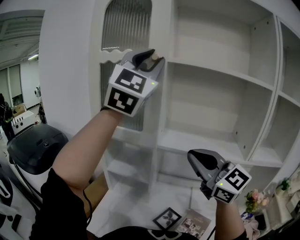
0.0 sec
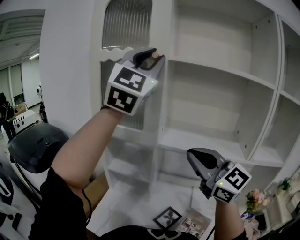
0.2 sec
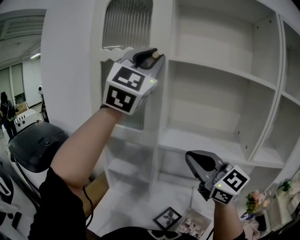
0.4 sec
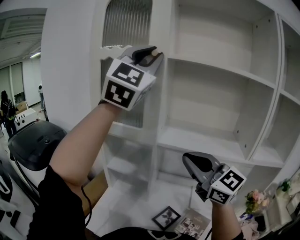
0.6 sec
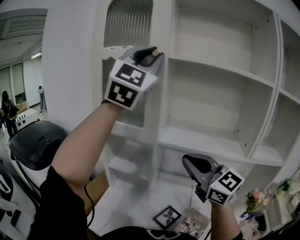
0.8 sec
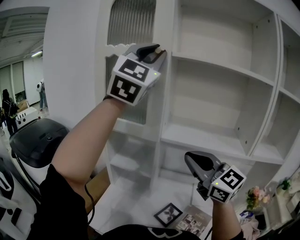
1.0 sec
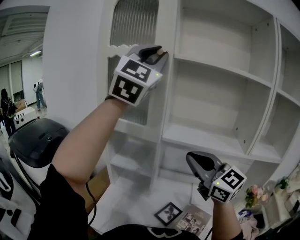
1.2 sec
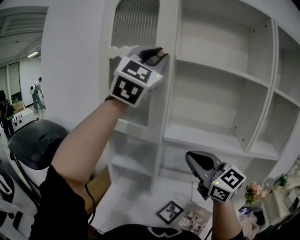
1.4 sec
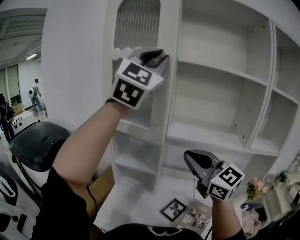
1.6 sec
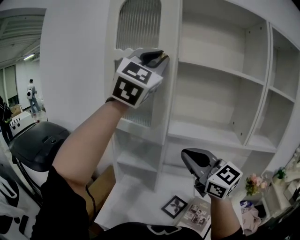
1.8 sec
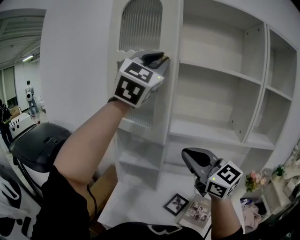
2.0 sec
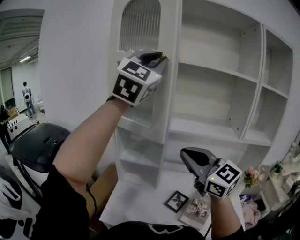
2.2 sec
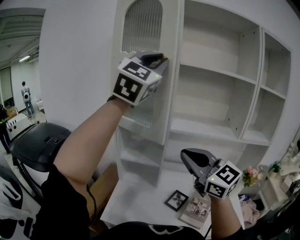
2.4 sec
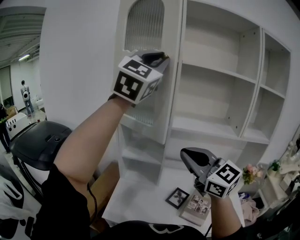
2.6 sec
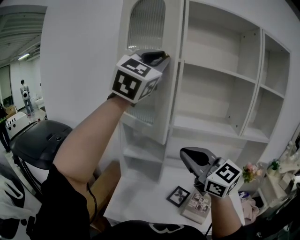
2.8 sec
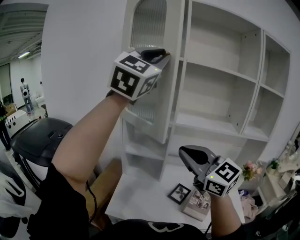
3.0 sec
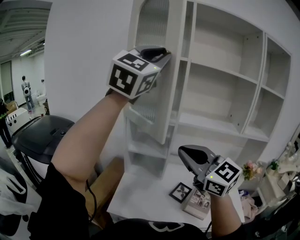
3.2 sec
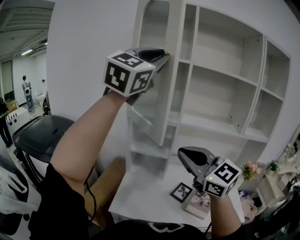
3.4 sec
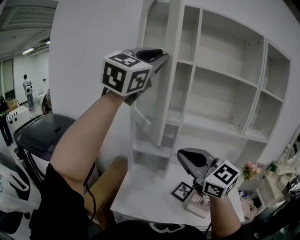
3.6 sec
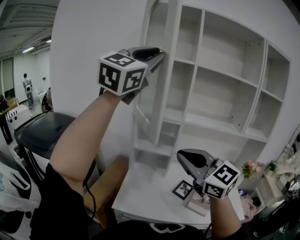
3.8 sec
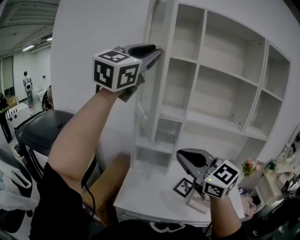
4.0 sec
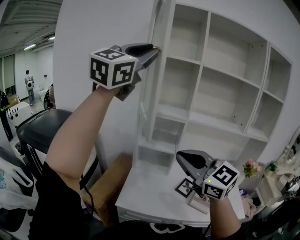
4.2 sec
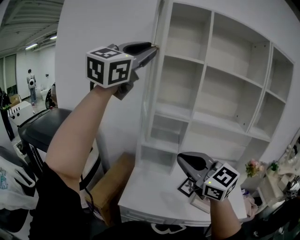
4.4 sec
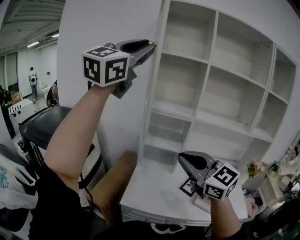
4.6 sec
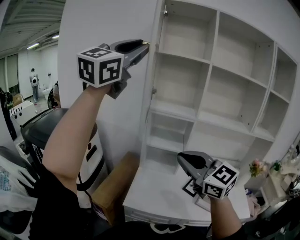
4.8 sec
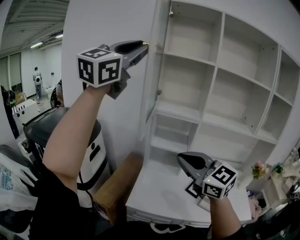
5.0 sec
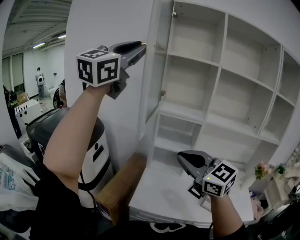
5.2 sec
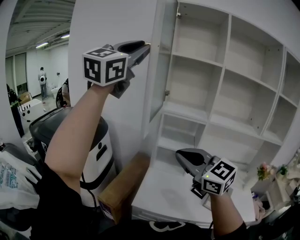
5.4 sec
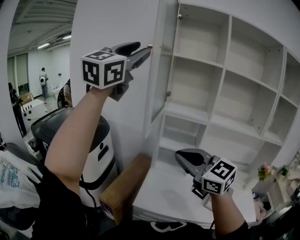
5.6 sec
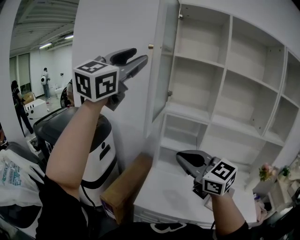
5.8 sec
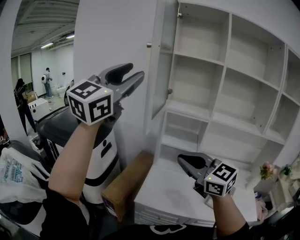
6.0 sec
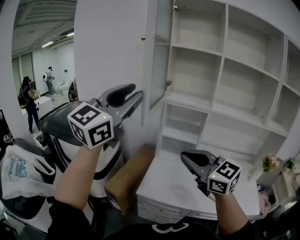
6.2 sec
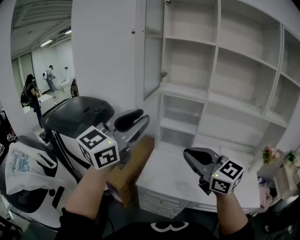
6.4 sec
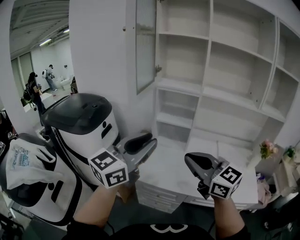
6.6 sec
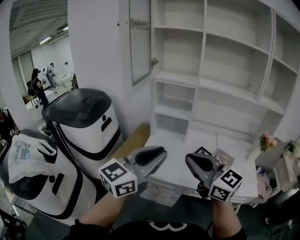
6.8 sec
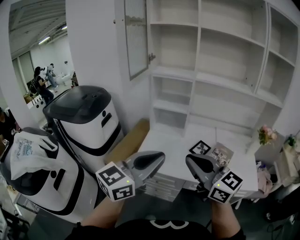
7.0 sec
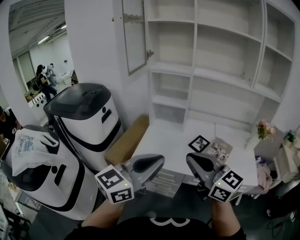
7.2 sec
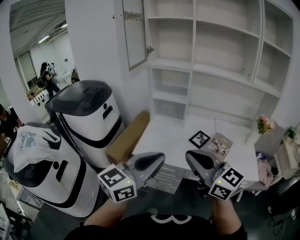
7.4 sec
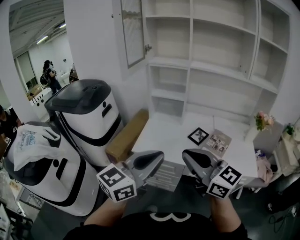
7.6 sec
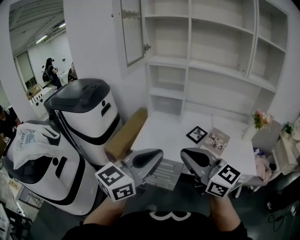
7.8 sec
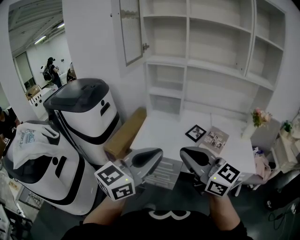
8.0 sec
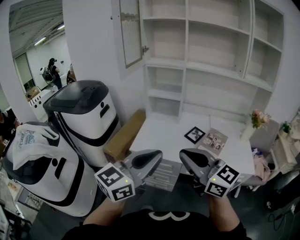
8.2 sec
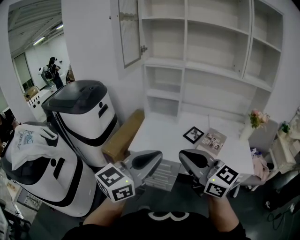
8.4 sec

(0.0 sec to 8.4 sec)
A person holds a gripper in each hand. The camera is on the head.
0.0 sec - 1.4 sec: The grippers make only small movements.
1.4 sec - 2.8 sec: The right gripper travels to the left and backward by some 15 cm; the left gripper shifts approximately 10 cm backward and to the left.
2.8 sec - 4.2 sec: The two grippers go approximately 15 cm to the left and backward.
4.2 sec - 5.6 sec: Both grippers travel together to the left, approximately 10 cm.
5.6 sec - 7.0 sec: The right gripper heads backward, to the right and downward, covering some 25 cm, and changes its angle by approximately 20 degrees. Meanwhile the left gripper is displaced downward, backward and to the right by approximately 50 cm, rotates some 40 degrees, and closes up.
7.0 sec - 8.4 sec: The grippers both shift backward by approximately 10 cm.

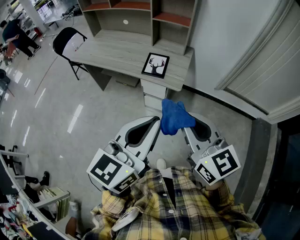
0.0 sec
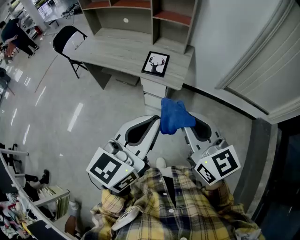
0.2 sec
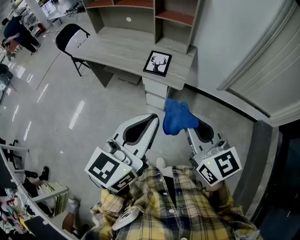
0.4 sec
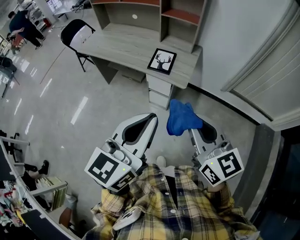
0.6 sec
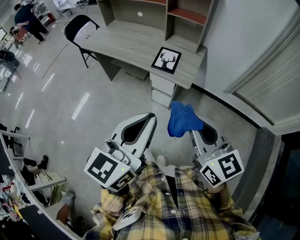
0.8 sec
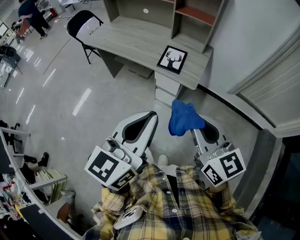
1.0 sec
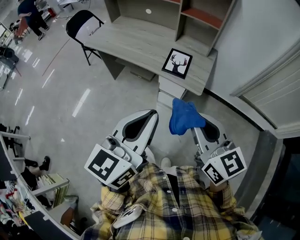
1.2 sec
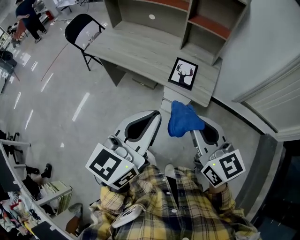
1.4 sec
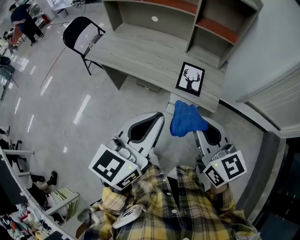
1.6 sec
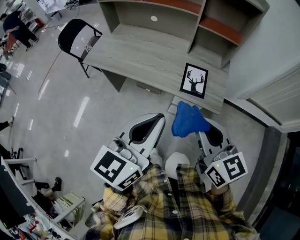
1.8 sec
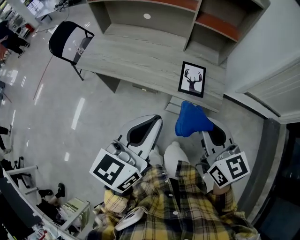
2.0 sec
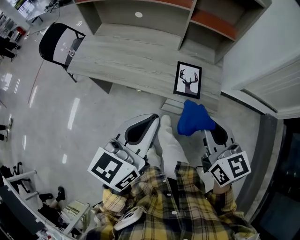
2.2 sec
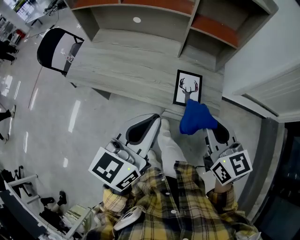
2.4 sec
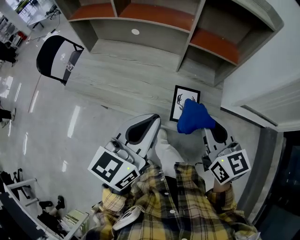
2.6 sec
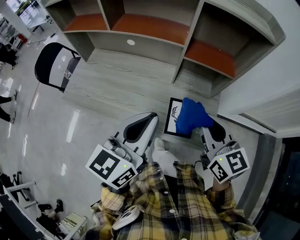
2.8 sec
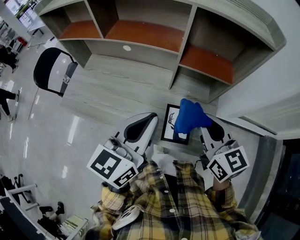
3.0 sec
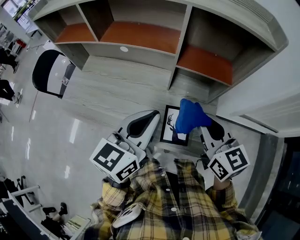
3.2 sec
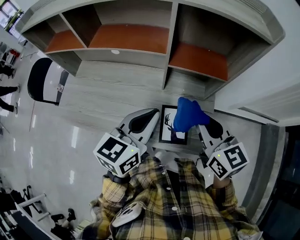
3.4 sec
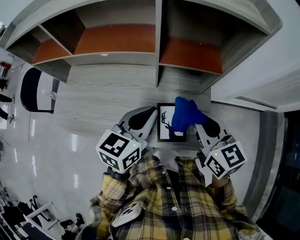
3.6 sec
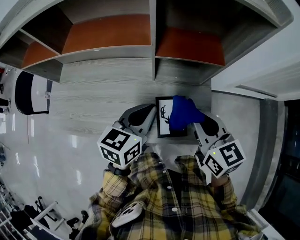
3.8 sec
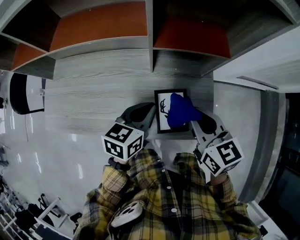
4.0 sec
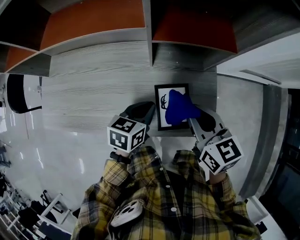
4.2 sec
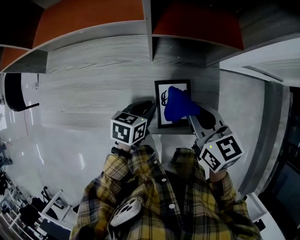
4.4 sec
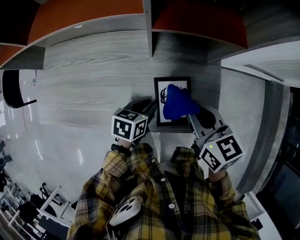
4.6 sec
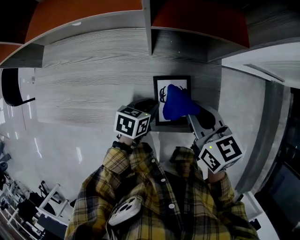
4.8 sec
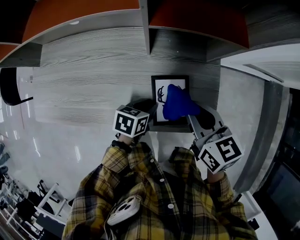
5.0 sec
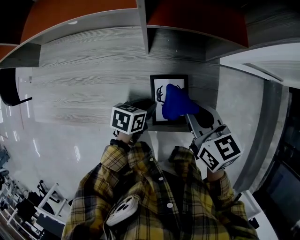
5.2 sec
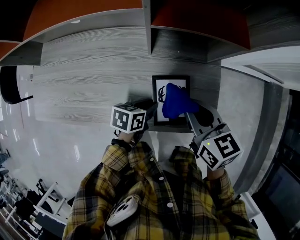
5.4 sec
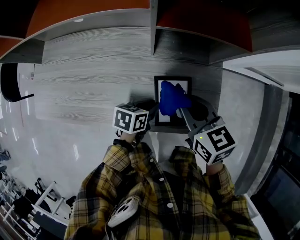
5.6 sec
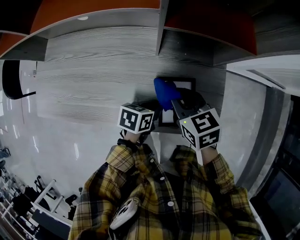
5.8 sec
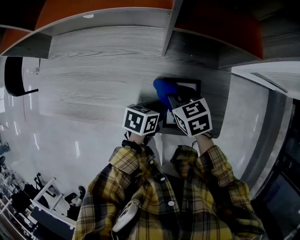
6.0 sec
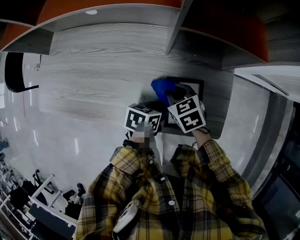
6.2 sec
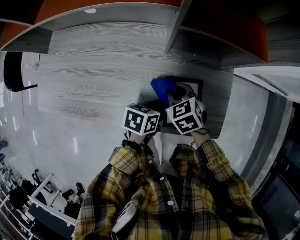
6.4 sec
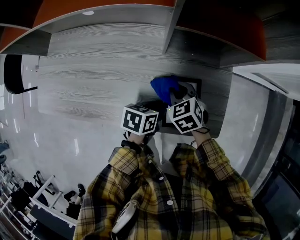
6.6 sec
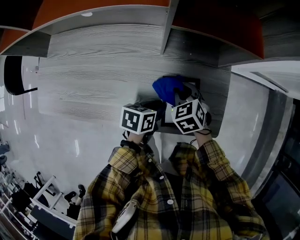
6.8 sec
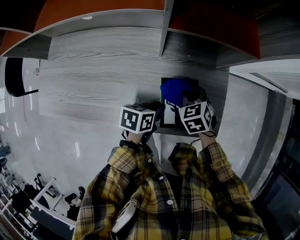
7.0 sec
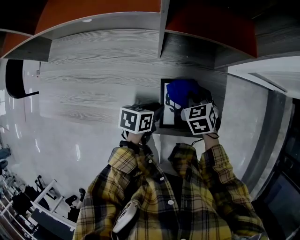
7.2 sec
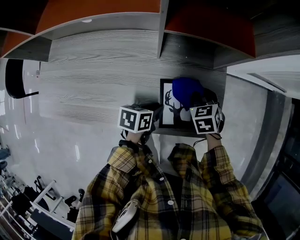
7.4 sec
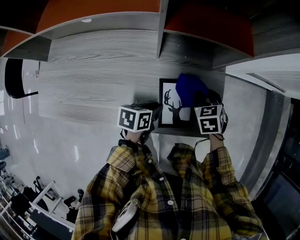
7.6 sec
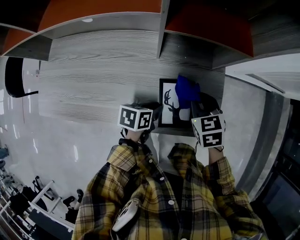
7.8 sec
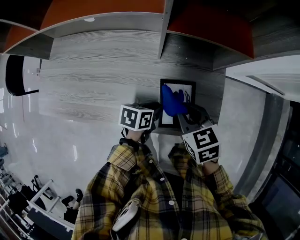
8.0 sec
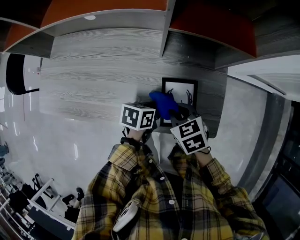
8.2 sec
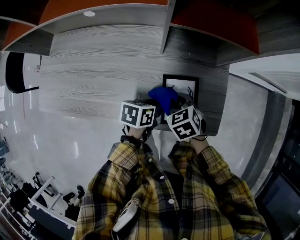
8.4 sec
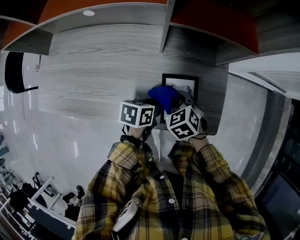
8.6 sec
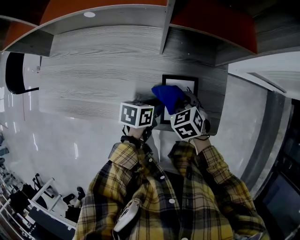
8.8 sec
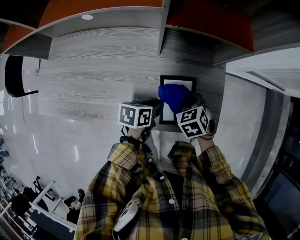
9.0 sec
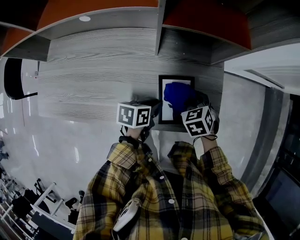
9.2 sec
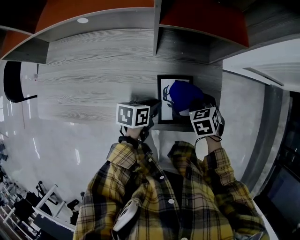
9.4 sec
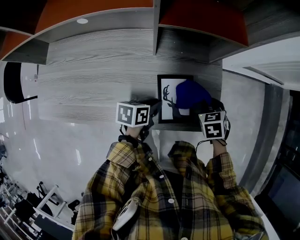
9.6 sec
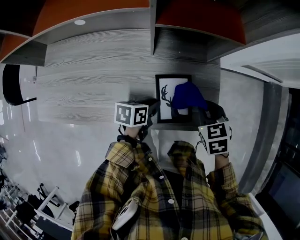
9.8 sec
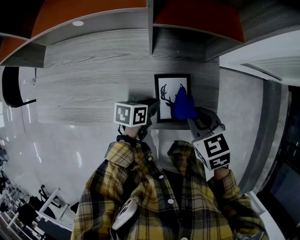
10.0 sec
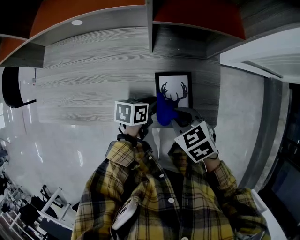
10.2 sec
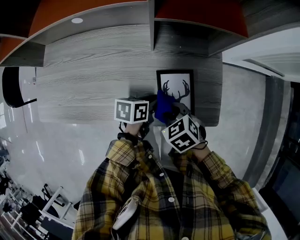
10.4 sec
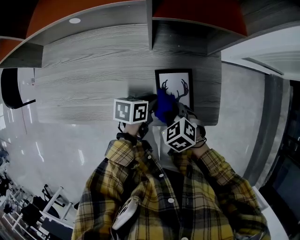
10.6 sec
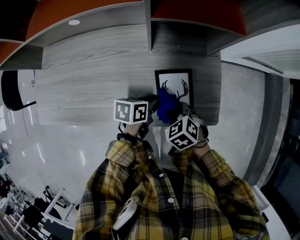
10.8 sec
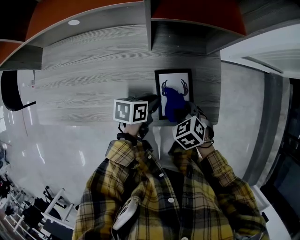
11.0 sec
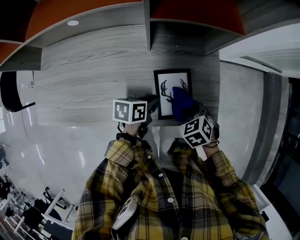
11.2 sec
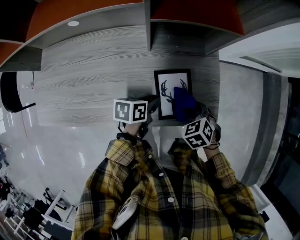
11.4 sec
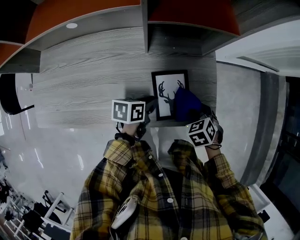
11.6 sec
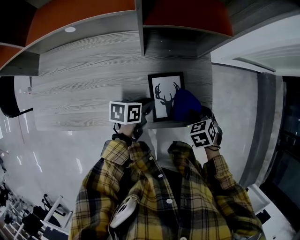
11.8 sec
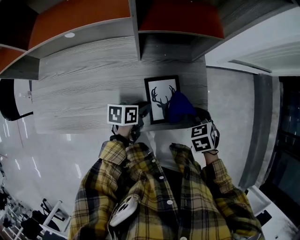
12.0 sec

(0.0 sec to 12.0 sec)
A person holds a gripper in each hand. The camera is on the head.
0.0 sec - 1.6 sec: The two grippers go some 25 cm forward and to the left.
1.6 sec - 3.0 sec: The two grippers go approximately 35 cm forward.
3.0 sec - 4.4 sec: The left gripper moves downward, roughly 30 cm, and tilts its fingers roughly 40 degrees downward; the right gripper goes roughly 15 cm downward, and swivels about 20 degrees.
4.4 sec - 6.0 sec: The right gripper is displaced downward and to the left by some 15 cm, and swivels about 20 degrees; the left gripper travels downward by roughly 5 cm.
6.0 sec - 7.6 sec: The right gripper heads to the right, covering approximately 15 cm, and changes its angle by roughly 30 degrees.
7.6 sec - 9.0 sec: The right gripper shifts approximately 10 cm to the left and backward.
9.0 sec - 10.4 sec: The right gripper reaches about 15 cm upward, then returns.
10.4 sec - 12.0 sec: The right gripper ends up roughly 15 cm from where it was, and swivels approximately 20 degrees.

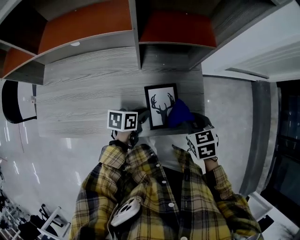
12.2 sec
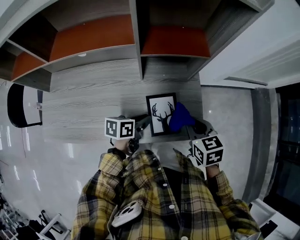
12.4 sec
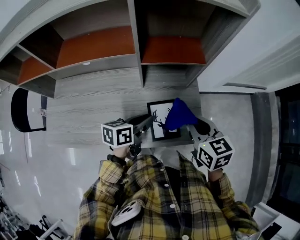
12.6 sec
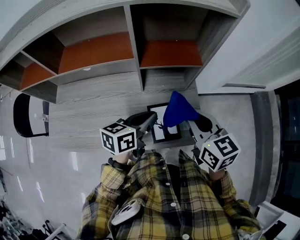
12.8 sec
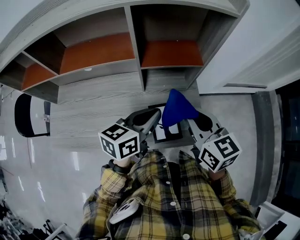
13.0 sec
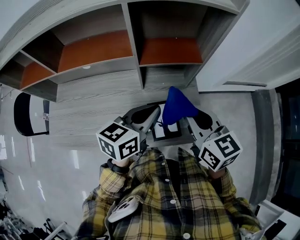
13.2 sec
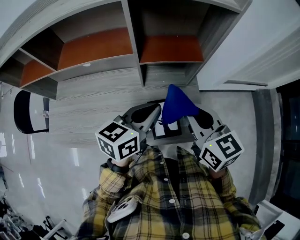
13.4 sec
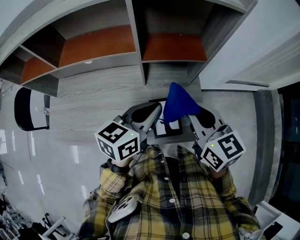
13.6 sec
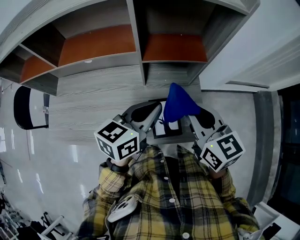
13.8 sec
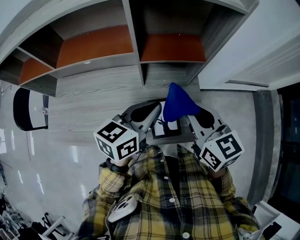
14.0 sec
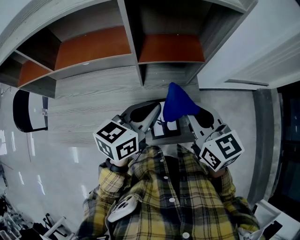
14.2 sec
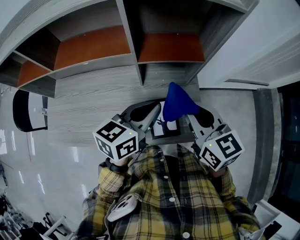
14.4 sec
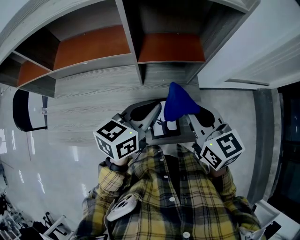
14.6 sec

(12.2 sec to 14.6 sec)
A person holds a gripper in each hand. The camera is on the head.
12.2 sec - 13.4 sec: Both grippers travel together upward, some 25 cm. The left gripper turns by about 40 degrees. Meanwhile the right gripper tips its fingers upward by roughly 40 degrees.
13.4 sec - 14.6 sec: There are only small adjustments of the grippers.

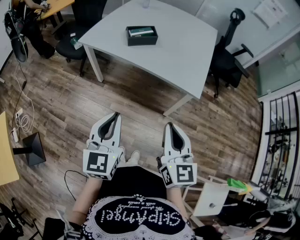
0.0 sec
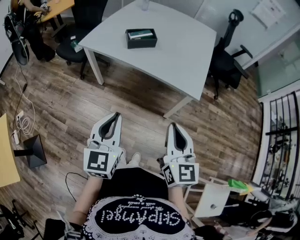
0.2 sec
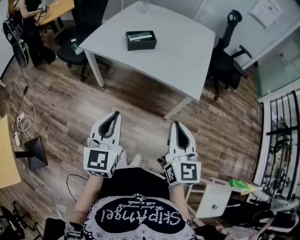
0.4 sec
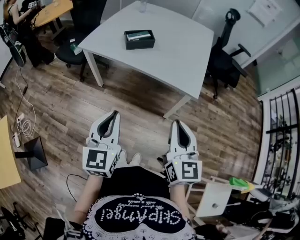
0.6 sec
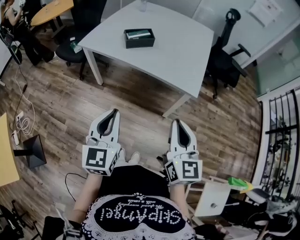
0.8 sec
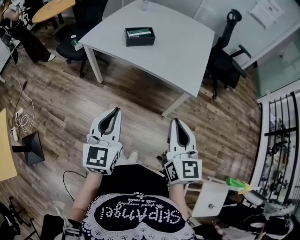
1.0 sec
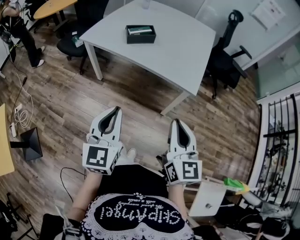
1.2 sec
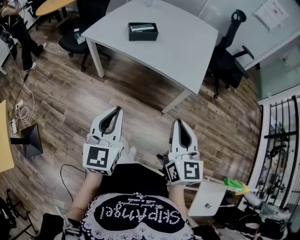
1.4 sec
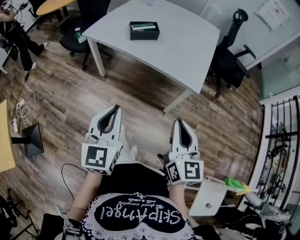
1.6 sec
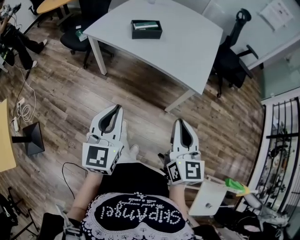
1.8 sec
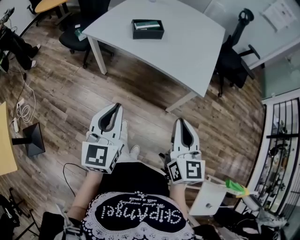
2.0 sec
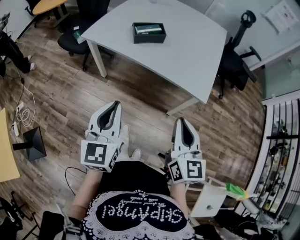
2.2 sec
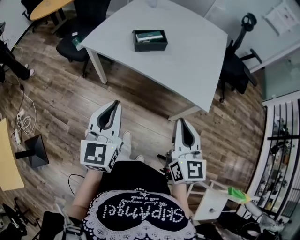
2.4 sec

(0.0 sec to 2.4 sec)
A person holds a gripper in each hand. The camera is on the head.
0.0 sec - 1.2 sec: The right gripper goes roughly 5 cm to the right.
1.2 sec - 2.4 sec: Both grippers move forward and to the left, approximately 15 cm.
